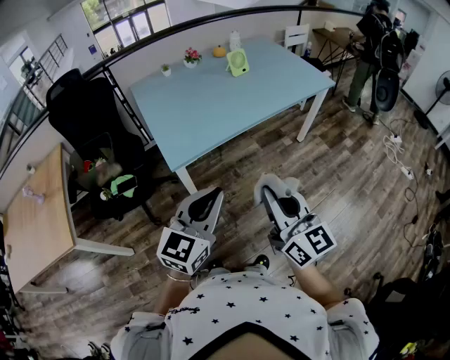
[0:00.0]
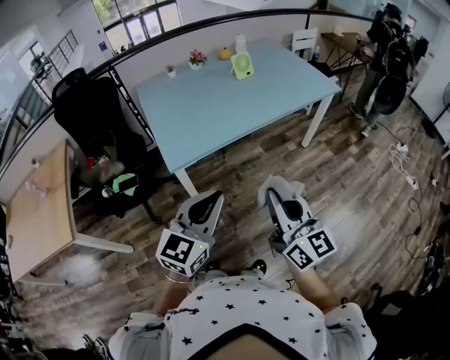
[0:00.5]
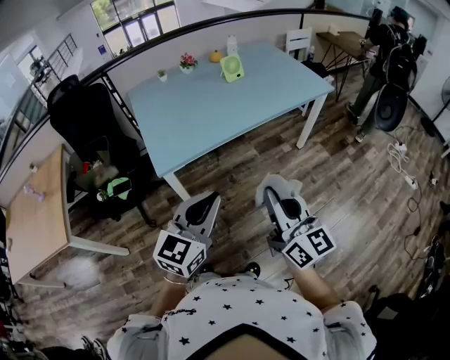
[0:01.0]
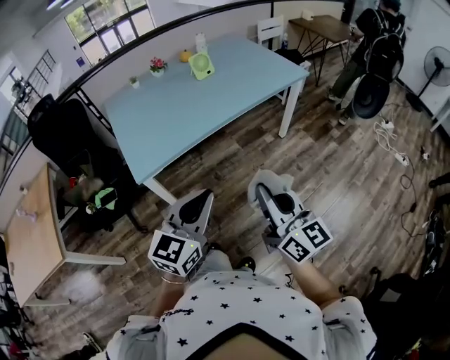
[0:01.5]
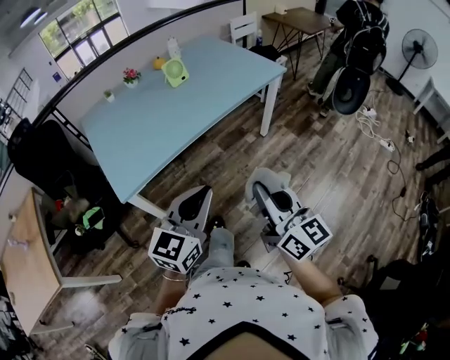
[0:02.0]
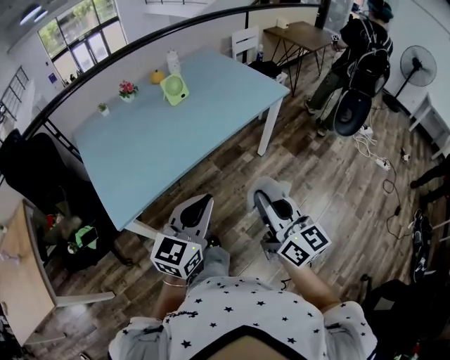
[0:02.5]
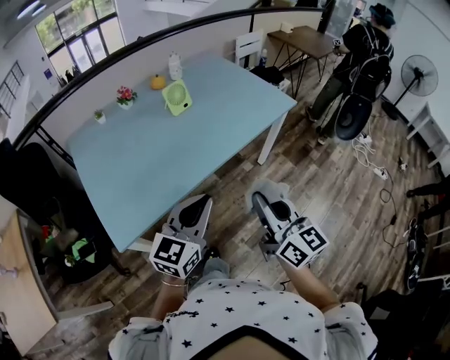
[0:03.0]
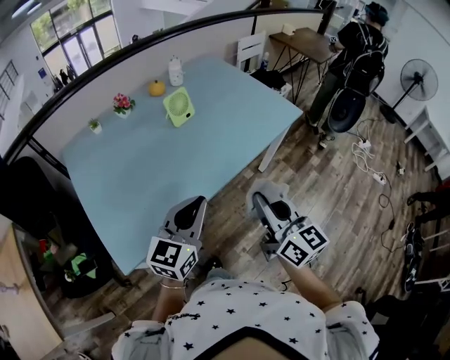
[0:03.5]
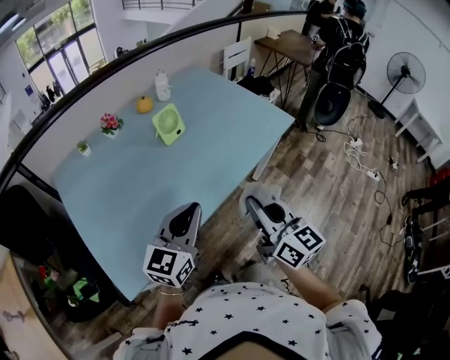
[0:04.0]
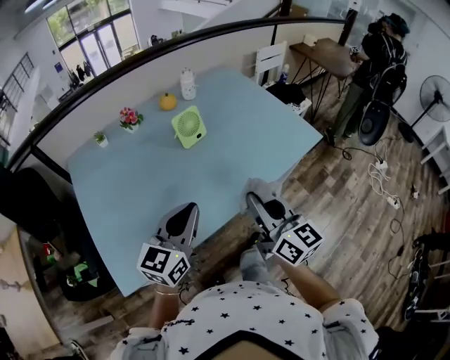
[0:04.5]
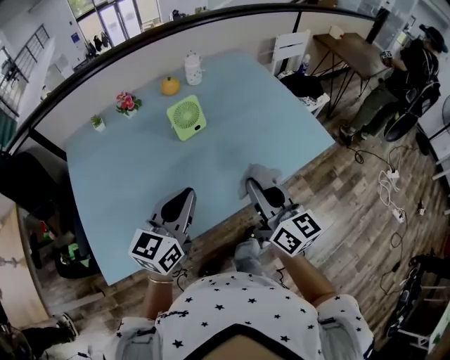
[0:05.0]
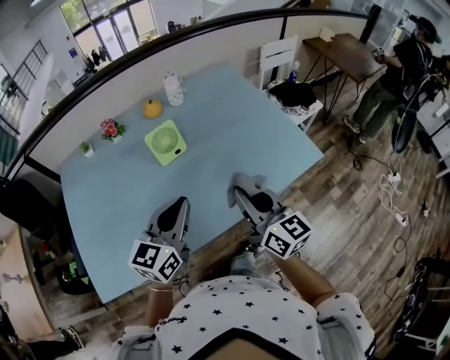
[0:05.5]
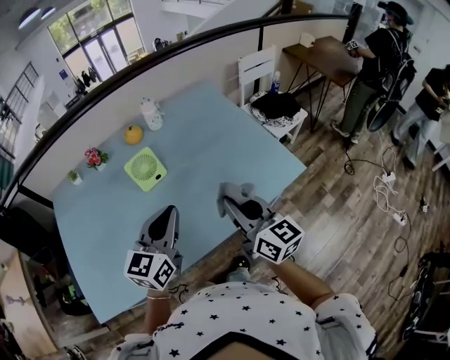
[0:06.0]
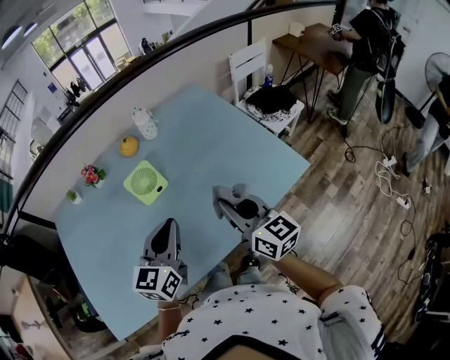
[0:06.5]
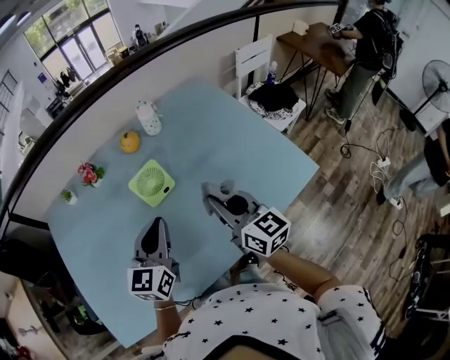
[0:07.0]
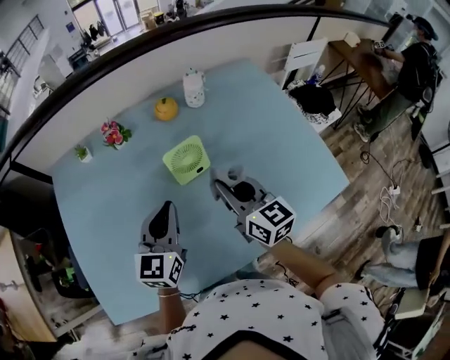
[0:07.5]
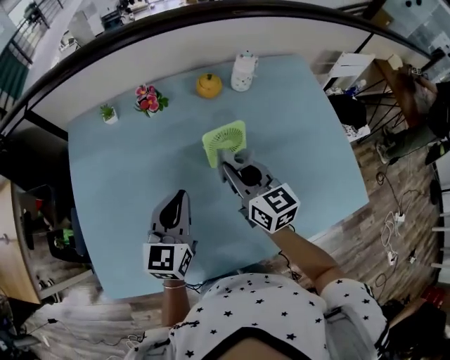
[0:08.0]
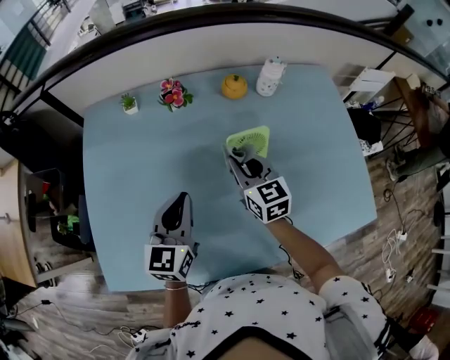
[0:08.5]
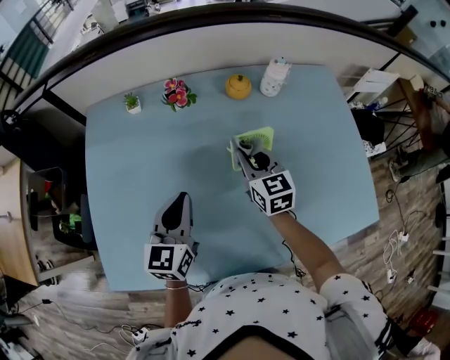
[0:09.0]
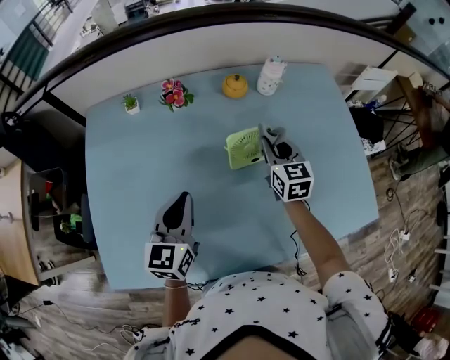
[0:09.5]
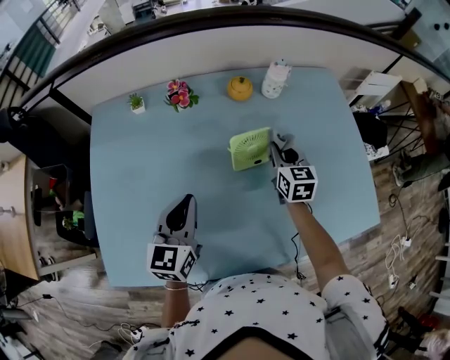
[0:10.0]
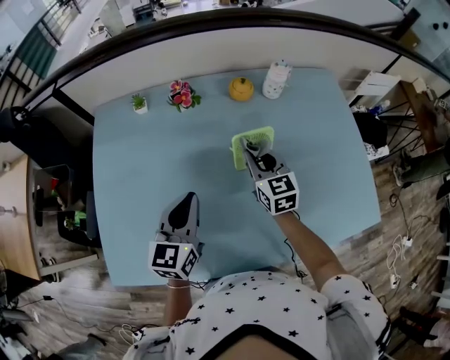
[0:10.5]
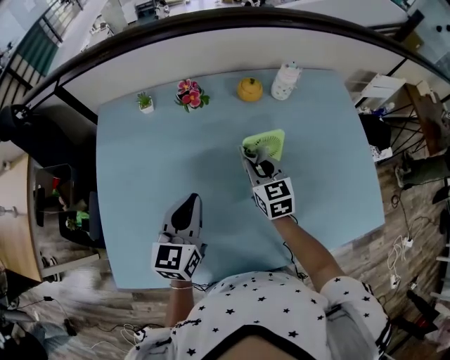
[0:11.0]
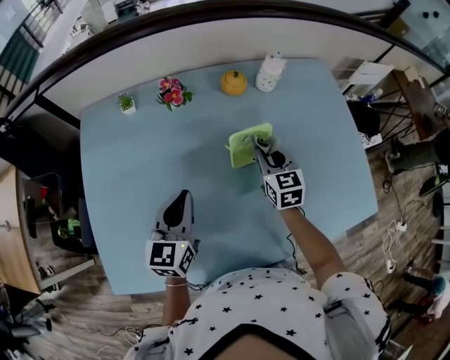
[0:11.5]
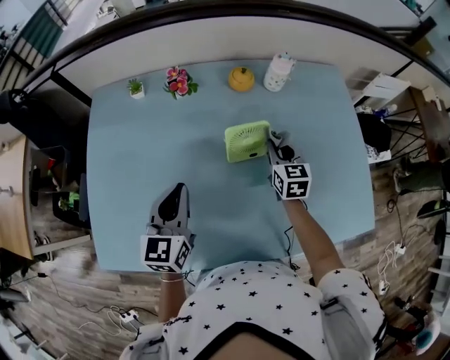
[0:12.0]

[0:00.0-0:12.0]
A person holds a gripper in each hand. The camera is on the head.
0:00.0 to 0:02.0: The right gripper heads to the right, covering some 20 cm; the left gripper travels to the right and forward by about 20 cm.
0:02.0 to 0:04.0: Both grippers travel together forward, about 30 cm.
0:04.0 to 0:06.0: The two grippers go approximately 30 cm forward and to the right.
0:06.0 to 0:08.0: Both grippers travel together to the left and forward, some 30 cm. The left gripper rotates approximately 20 degrees. Meanwhile the right gripper changes its angle by about 20 degrees.
0:08.0 to 0:10.0: The right gripper moves to the right, forward and downward, roughly 15 cm, and changes its angle by some 20 degrees.
0:10.0 to 0:12.0: The right gripper travels to the left and back again, approximately 10 cm each way.

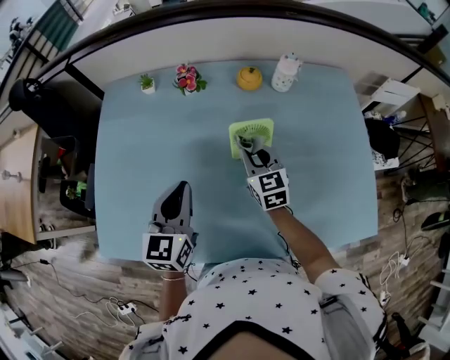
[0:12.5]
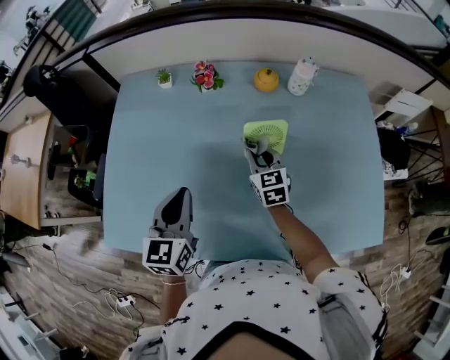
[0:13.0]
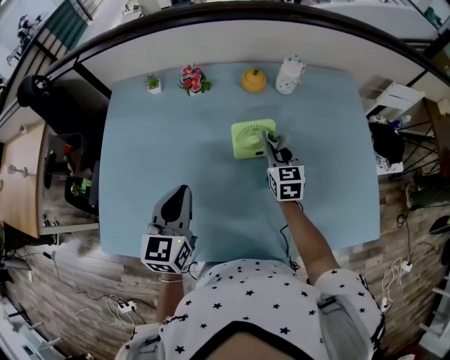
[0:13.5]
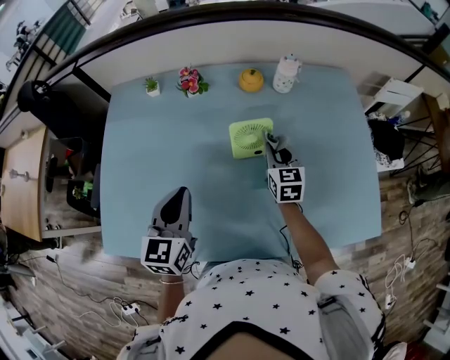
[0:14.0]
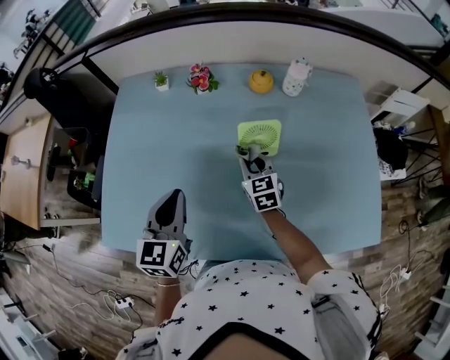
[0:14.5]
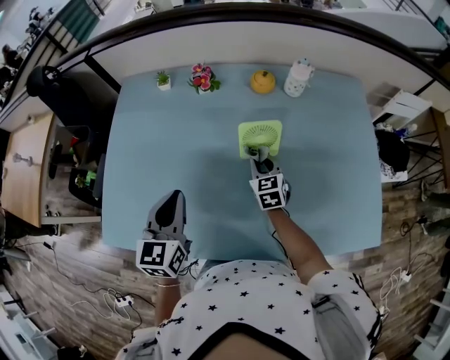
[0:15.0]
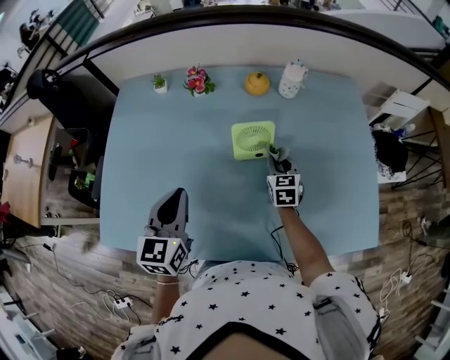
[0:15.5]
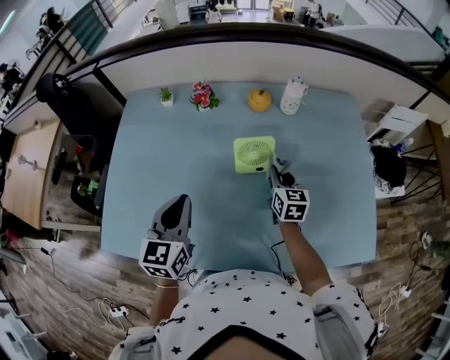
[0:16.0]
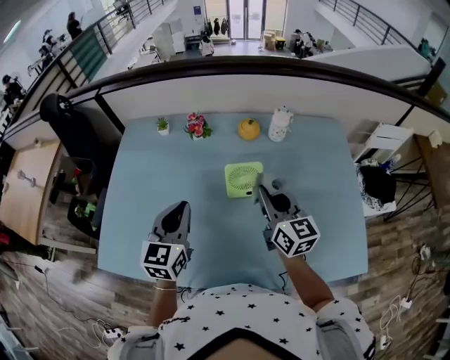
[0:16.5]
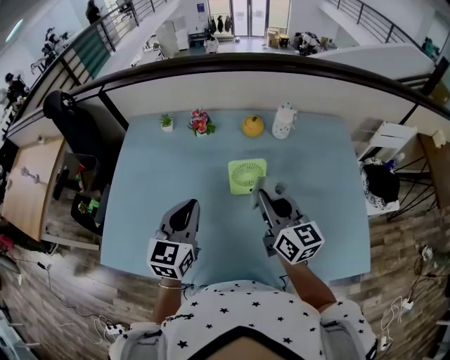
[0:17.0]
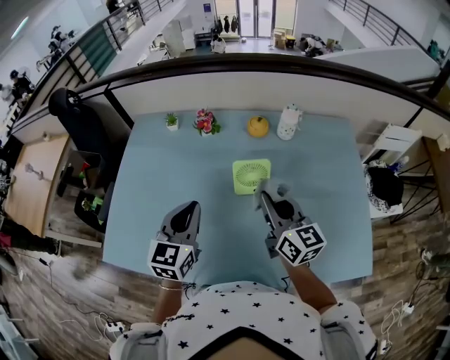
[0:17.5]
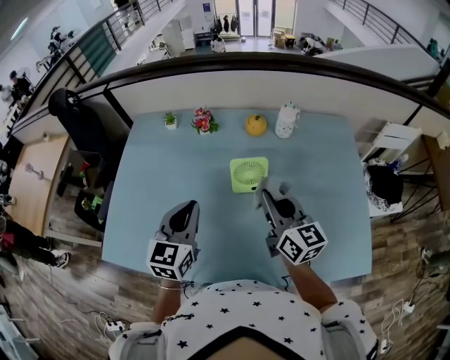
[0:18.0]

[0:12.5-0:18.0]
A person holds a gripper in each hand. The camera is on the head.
0:12.5 to 0:14.5: The right gripper goes to the right and returns, roughly 10 cm each way.
0:14.5 to 0:16.0: The right gripper travels to the right by about 10 cm.
0:16.0 to 0:18.0: The right gripper shifts about 20 cm upward and backward, and rotates some 30 degrees.

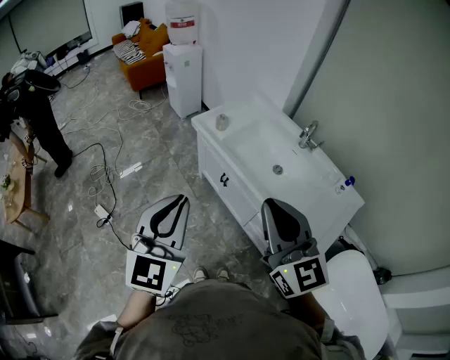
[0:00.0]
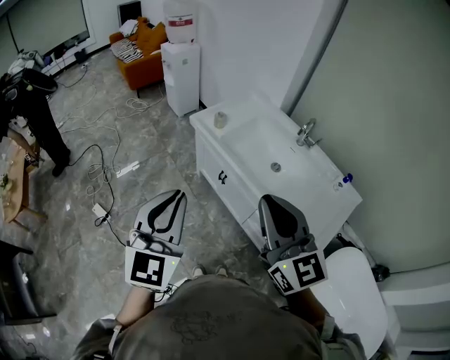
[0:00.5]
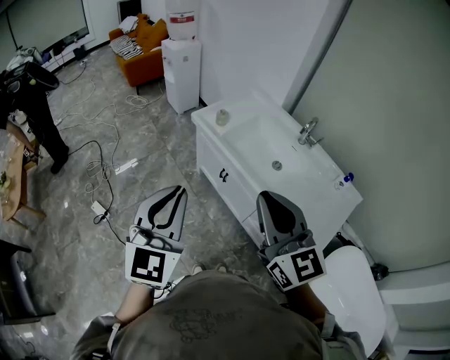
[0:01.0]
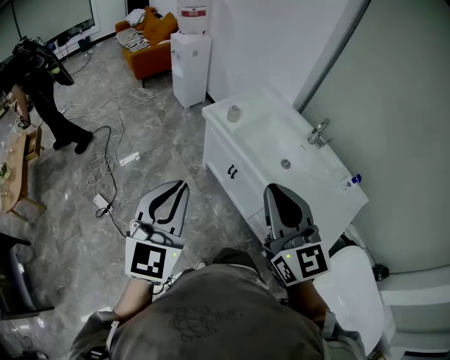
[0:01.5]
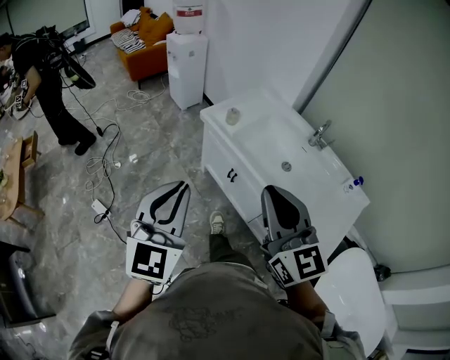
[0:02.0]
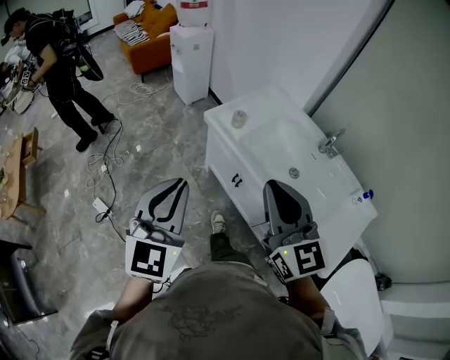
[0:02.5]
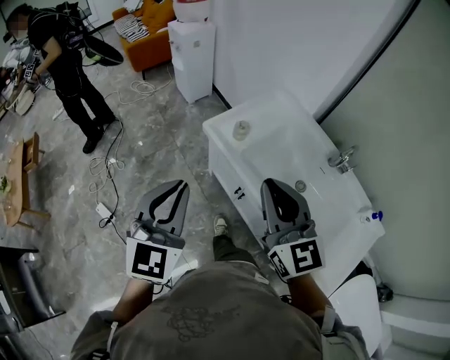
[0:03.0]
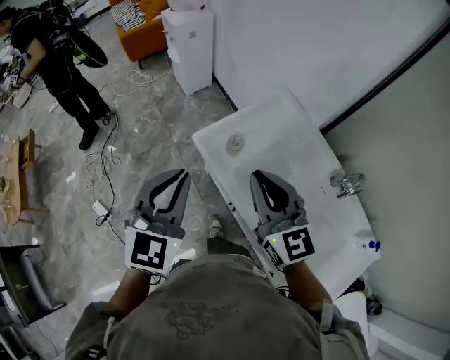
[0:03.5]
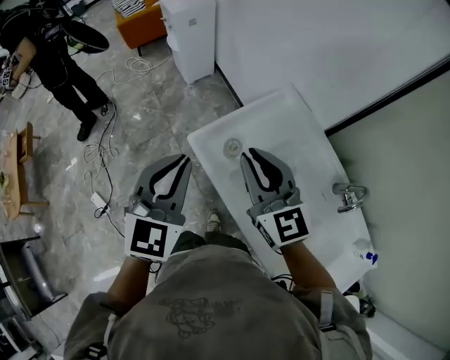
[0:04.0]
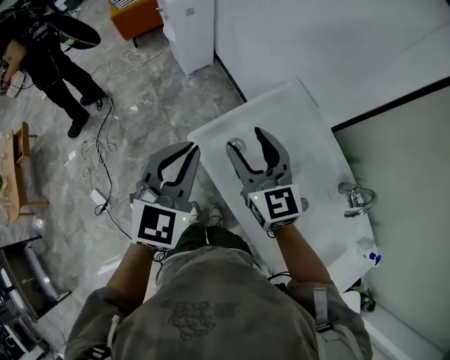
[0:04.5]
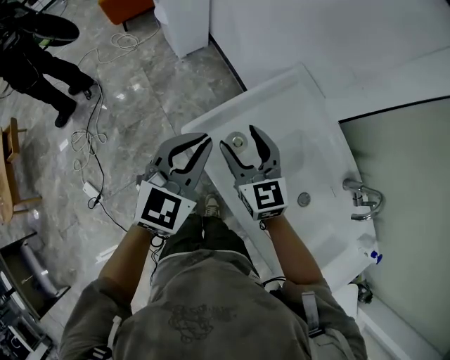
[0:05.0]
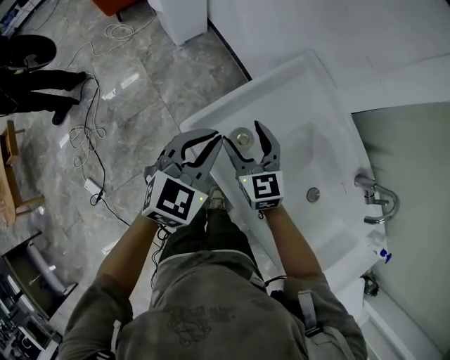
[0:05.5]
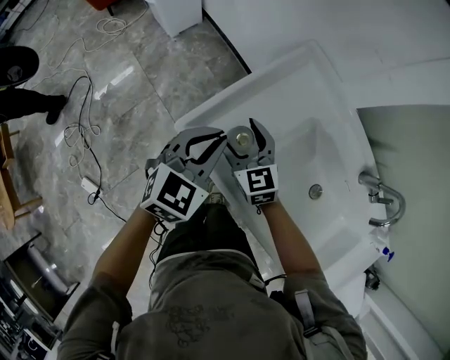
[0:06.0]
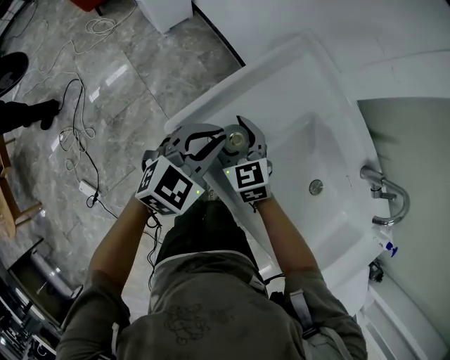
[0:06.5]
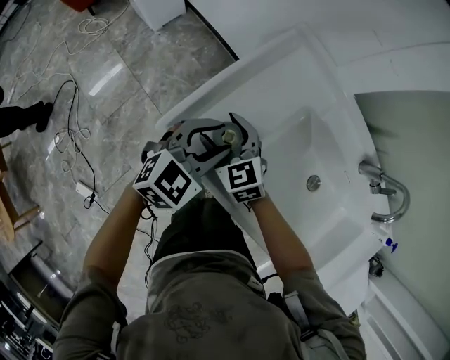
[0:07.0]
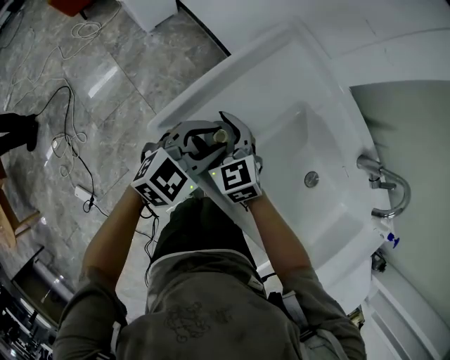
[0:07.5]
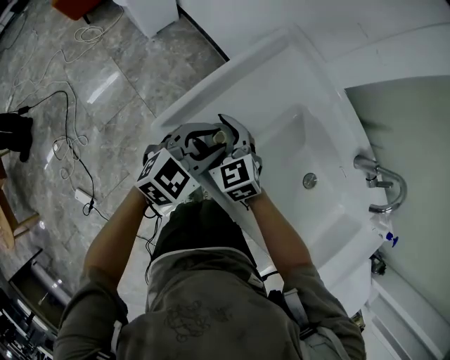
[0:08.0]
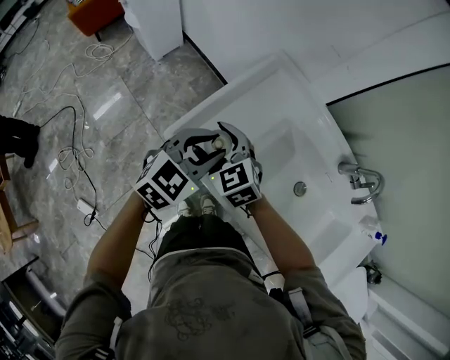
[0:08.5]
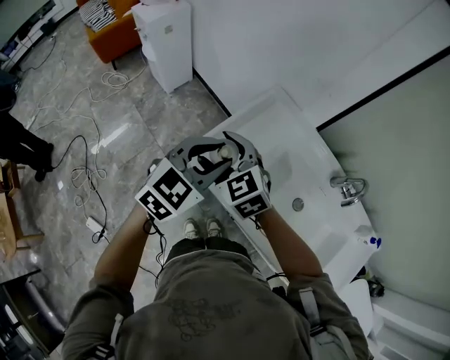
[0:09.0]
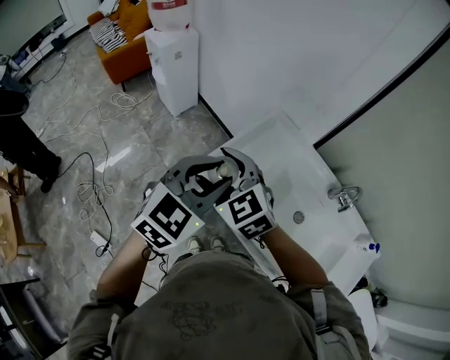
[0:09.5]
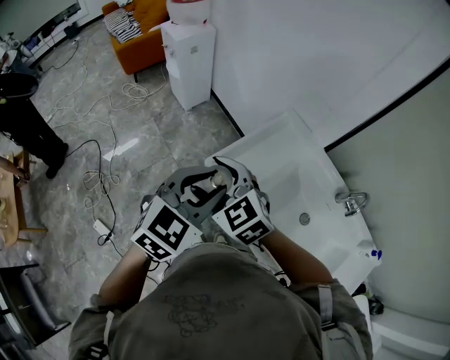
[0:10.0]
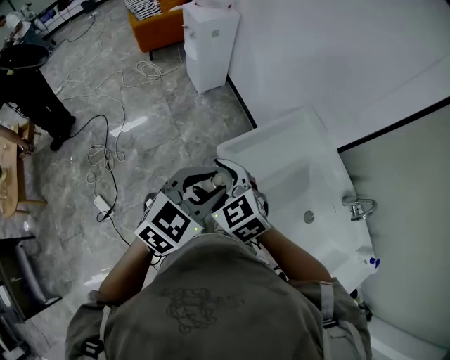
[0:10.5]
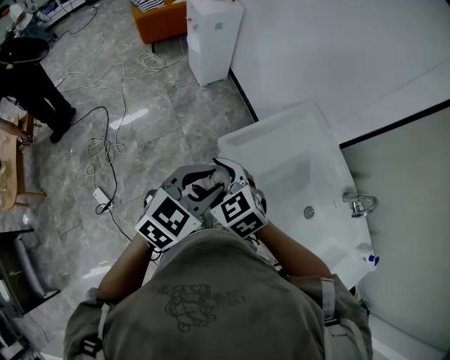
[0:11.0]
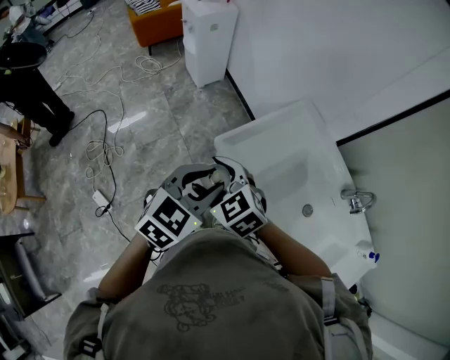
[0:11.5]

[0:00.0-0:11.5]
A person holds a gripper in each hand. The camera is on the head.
0:00.0 to 0:02.0: Both grippers move to the left, some 5 cm.
0:02.0 to 0:04.0: Both grippers are carried forward, roughly 50 cm.
0:04.0 to 0:06.0: The two grippers go about 30 cm downward and forward. The right gripper changes its angle by some 20 degrees, and opens; the left gripper changes its angle by roughly 30 degrees.
0:06.0 to 0:07.5: The left gripper moves downward and to the right, some 10 cm, and opens.
0:07.5 to 0:09.5: Both grippers move upward, about 30 cm.
0:09.5 to 0:11.5: The left gripper is displaced downward, to the left and backward by some 10 cm, while the right gripper heads downward, backward and to the left, covering some 15 cm.
